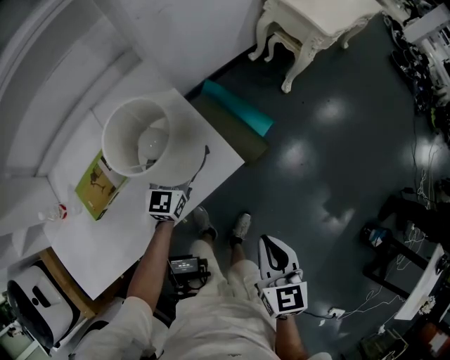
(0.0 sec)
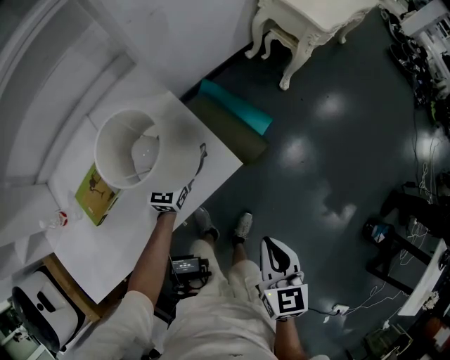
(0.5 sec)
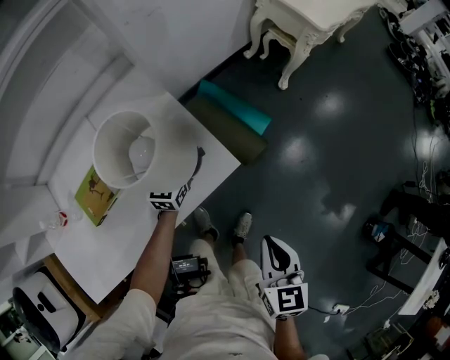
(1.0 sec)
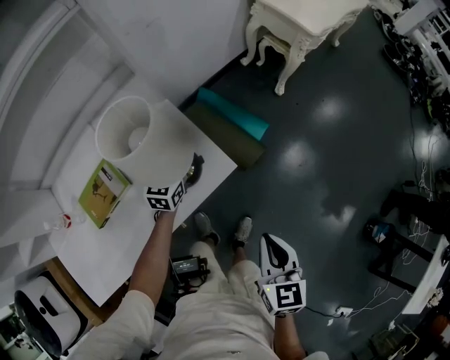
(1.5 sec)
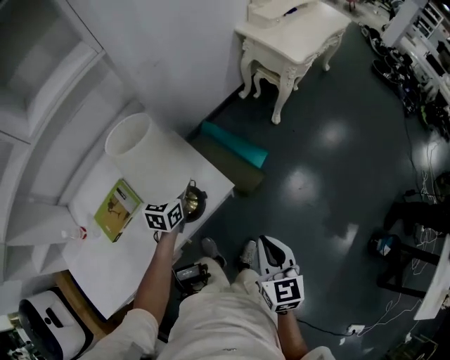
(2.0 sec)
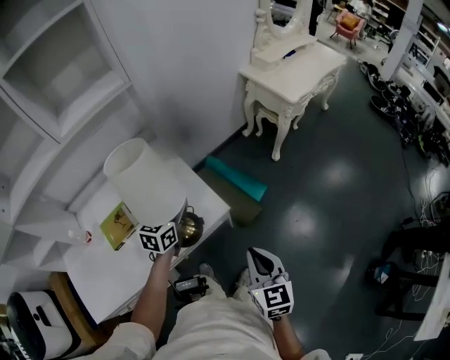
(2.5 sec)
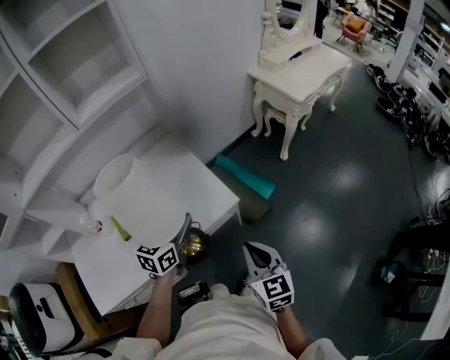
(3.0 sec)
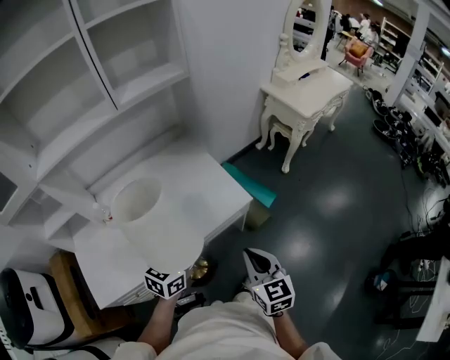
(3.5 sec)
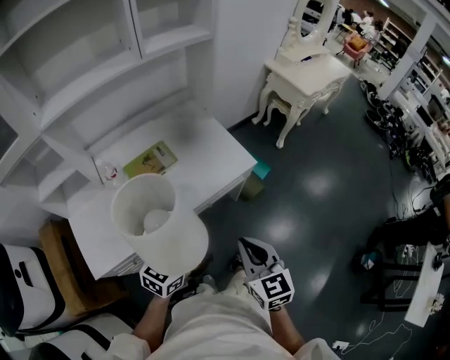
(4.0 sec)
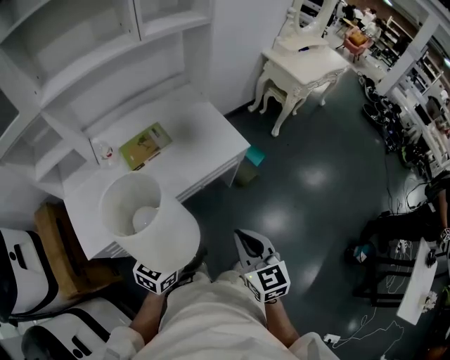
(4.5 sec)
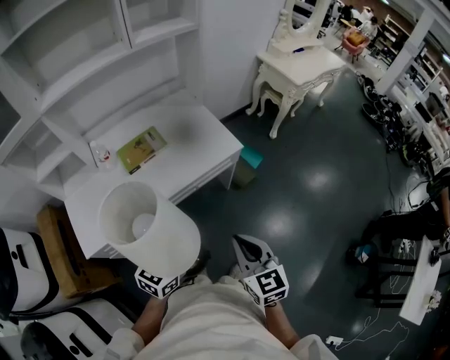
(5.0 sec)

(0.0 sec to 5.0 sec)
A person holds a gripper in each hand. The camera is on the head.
0.0 sec - 2.5 sec: The right gripper travels upward by some 10 cm. The left gripper moves upward, backward and to the right, some 15 cm, and closes up.
2.5 sec - 5.0 sec: The left gripper heads backward, covering roughly 50 cm; the right gripper heads backward and to the left, covering approximately 35 cm.

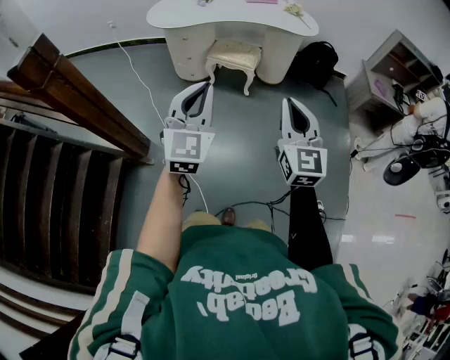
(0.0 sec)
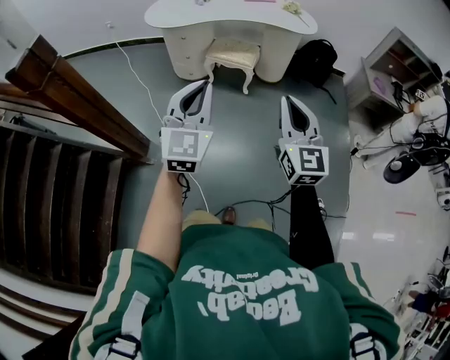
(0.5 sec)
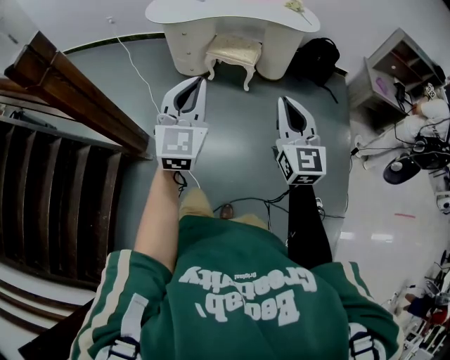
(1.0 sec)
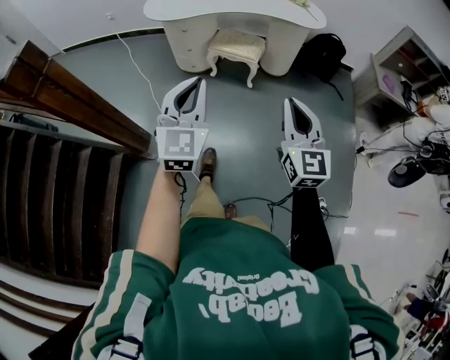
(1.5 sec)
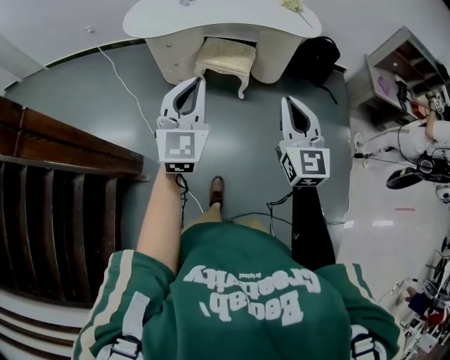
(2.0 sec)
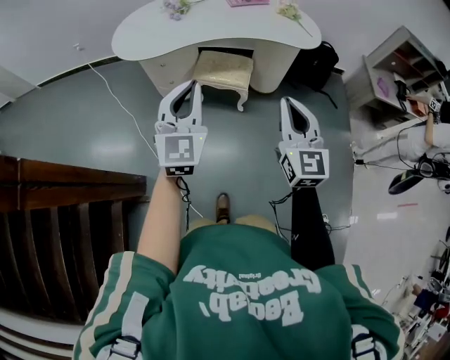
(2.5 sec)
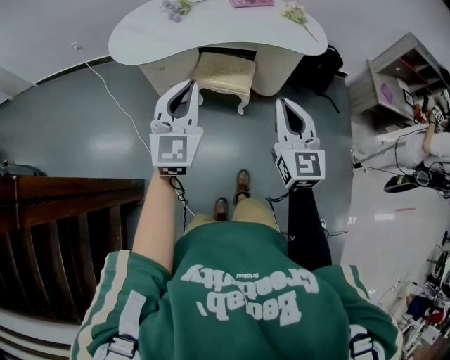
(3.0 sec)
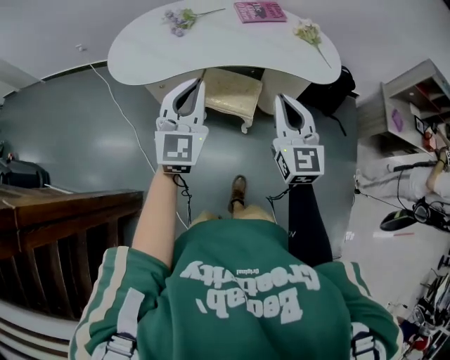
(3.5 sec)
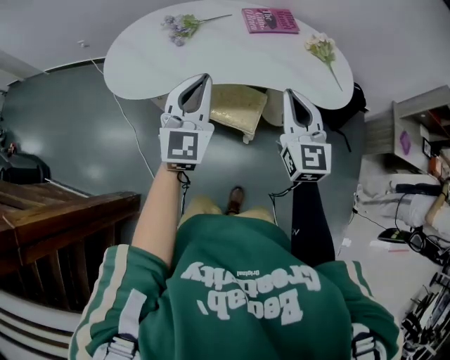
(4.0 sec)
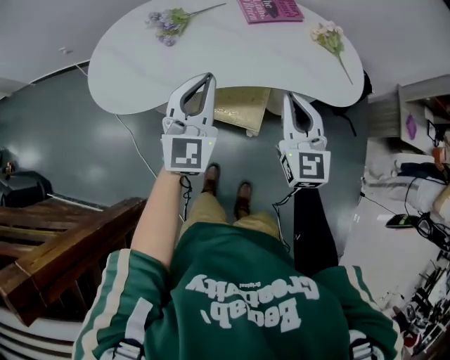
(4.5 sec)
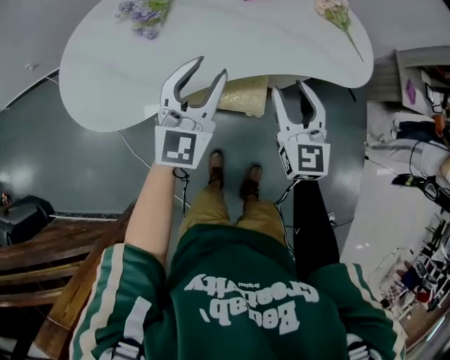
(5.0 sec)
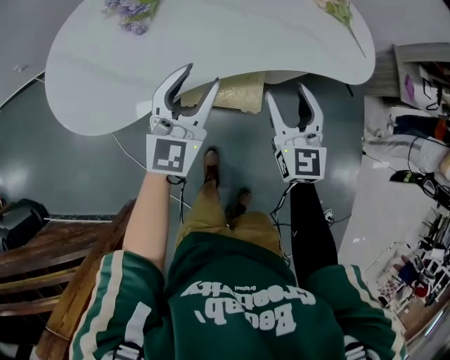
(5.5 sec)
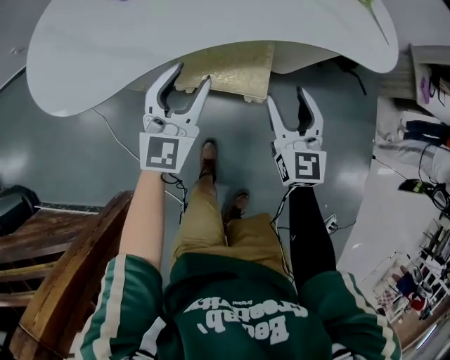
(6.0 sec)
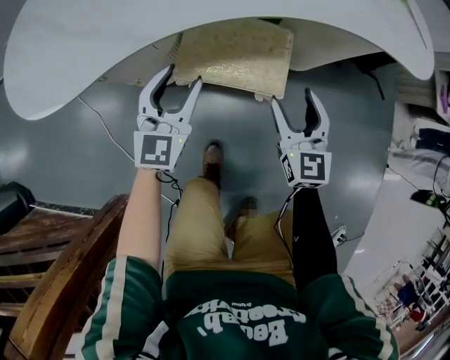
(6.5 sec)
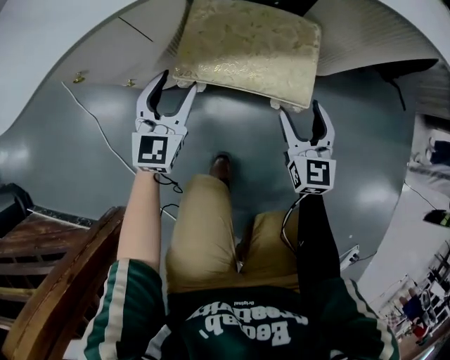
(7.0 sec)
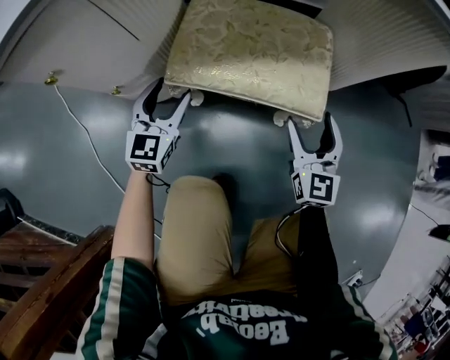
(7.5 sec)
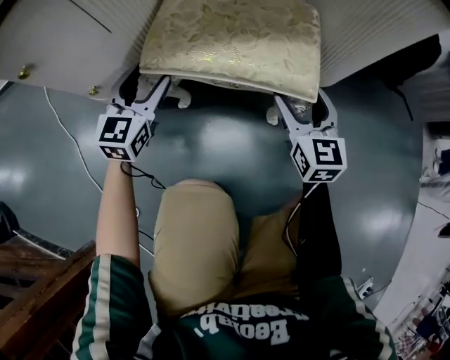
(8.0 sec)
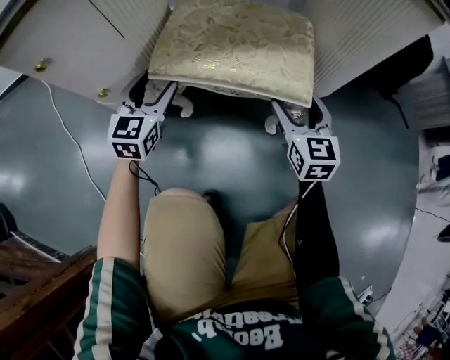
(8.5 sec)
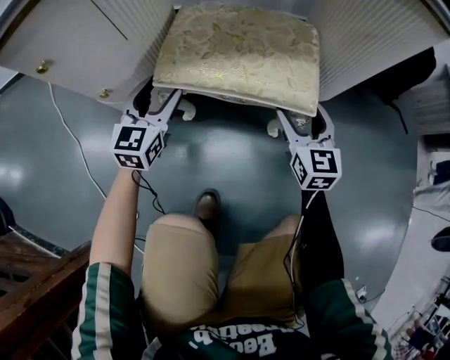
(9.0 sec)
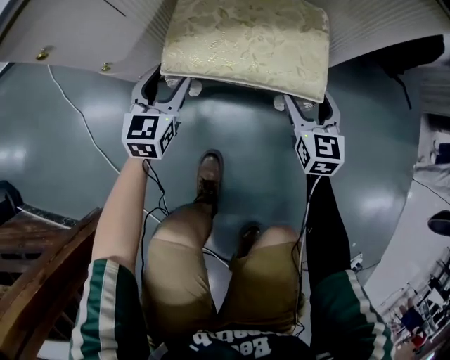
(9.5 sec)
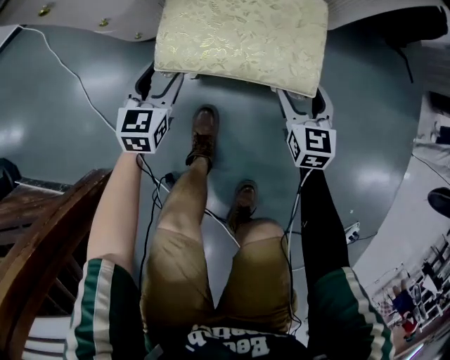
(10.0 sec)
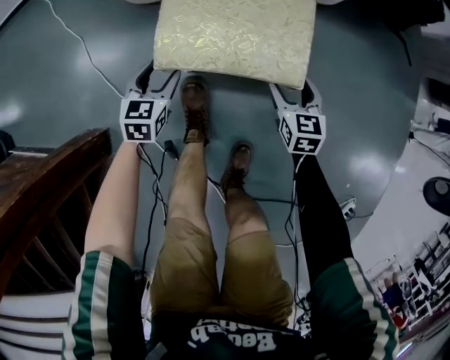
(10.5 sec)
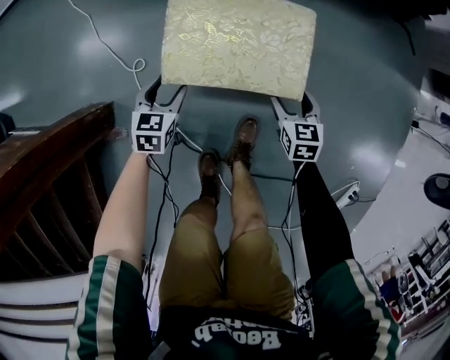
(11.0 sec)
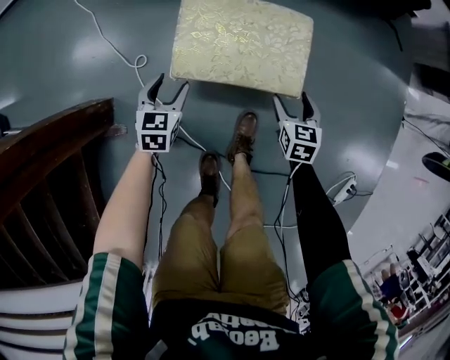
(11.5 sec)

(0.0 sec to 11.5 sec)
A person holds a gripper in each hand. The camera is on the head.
0.0 sec - 2.0 sec: Both grippers move forward, roughly 20 cm.
2.0 sec - 4.0 sec: Both grippers are carried forward, approximately 50 cm.
4.0 sec - 6.0 sec: Both grippers travel together downward, about 30 cm. The right gripper opens, while the left gripper turns by approximately 20 degrees, and opens up.
6.0 sec - 7.5 sec: Both grippers travel together downward, about 40 cm.
7.5 sec - 9.5 sec: The grippers both shift forward by some 15 cm.
9.5 sec - 11.5 sec: The two grippers travel together, backward, approximately 60 cm. The left gripper changes its angle by some 20 degrees, while the right gripper swivels approximately 20 degrees.

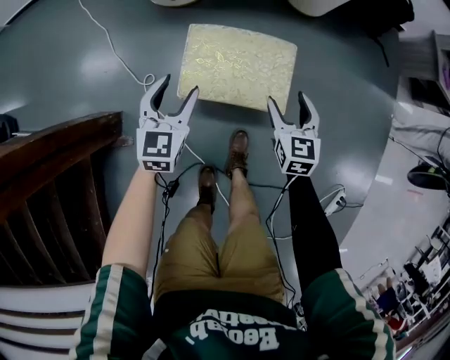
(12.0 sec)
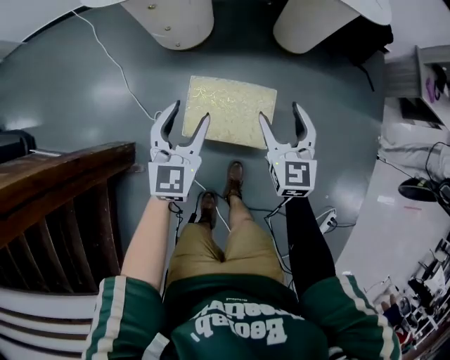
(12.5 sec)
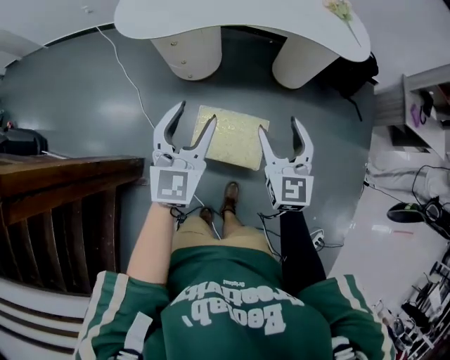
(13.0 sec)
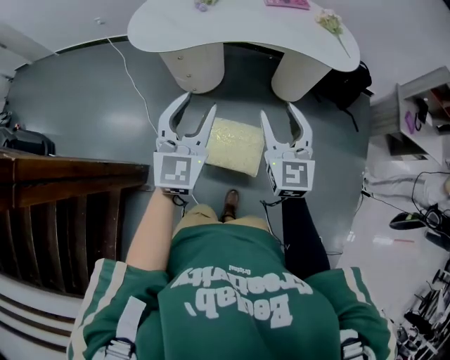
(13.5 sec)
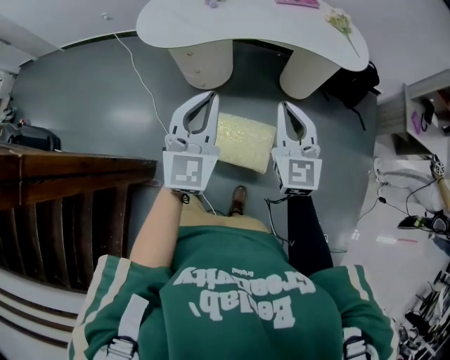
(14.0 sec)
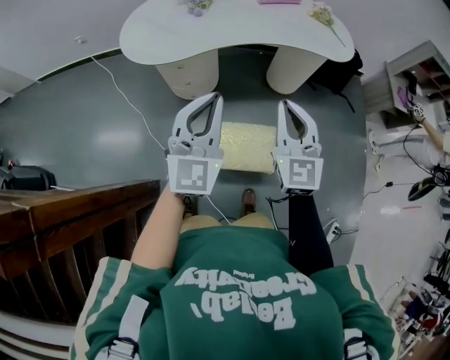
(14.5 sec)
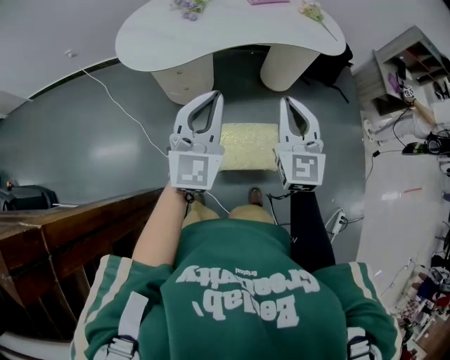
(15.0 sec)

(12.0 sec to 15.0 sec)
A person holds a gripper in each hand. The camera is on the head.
12.0 sec - 13.5 sec: Both grippers move upward, roughly 50 cm. The left gripper rotates some 30 degrees, while the right gripper turns by roughly 30 degrees.
13.5 sec - 15.0 sec: The two grippers go some 10 cm to the left. The left gripper closes. Meanwhile the right gripper closes up.

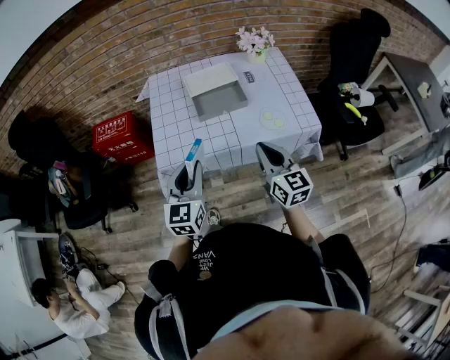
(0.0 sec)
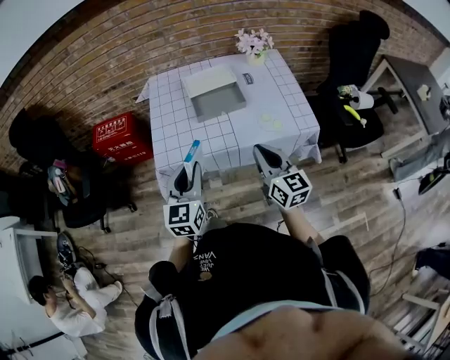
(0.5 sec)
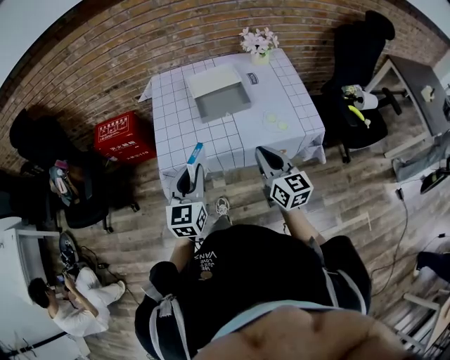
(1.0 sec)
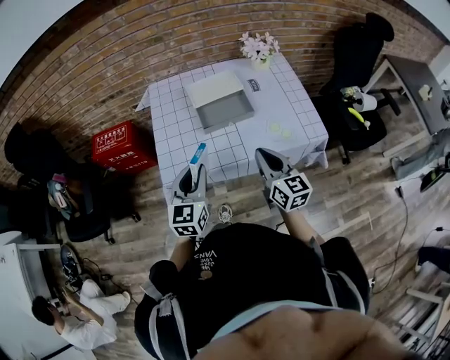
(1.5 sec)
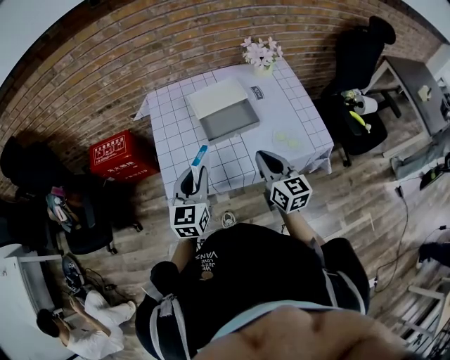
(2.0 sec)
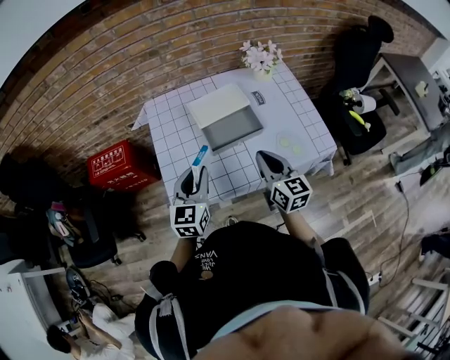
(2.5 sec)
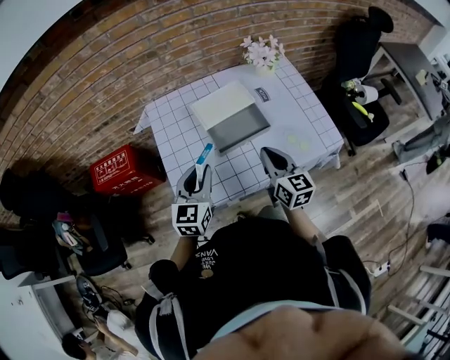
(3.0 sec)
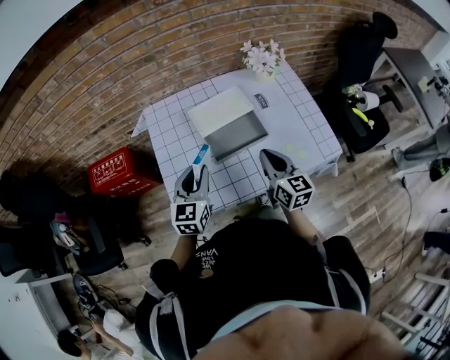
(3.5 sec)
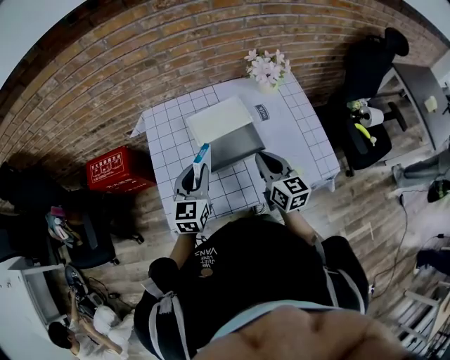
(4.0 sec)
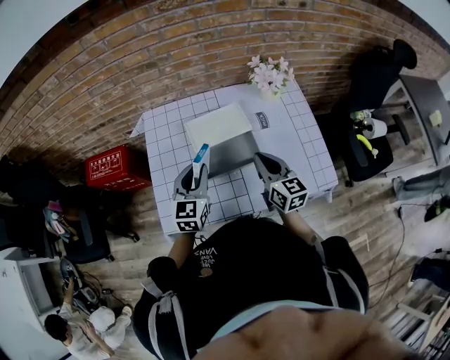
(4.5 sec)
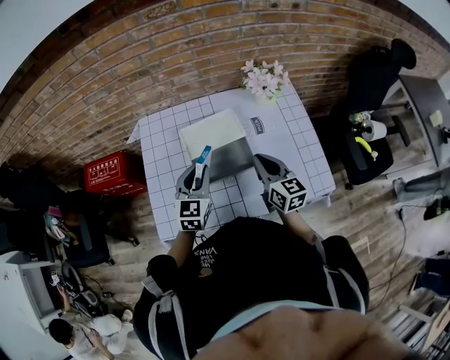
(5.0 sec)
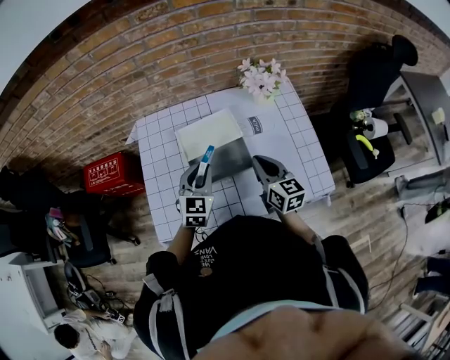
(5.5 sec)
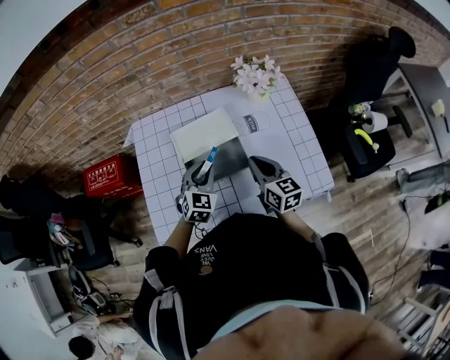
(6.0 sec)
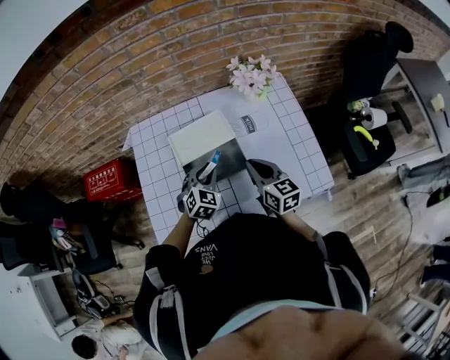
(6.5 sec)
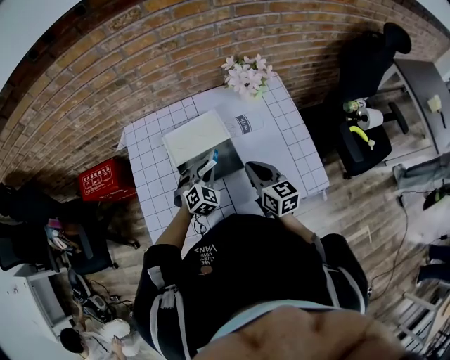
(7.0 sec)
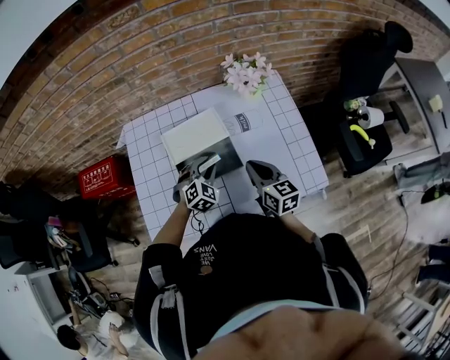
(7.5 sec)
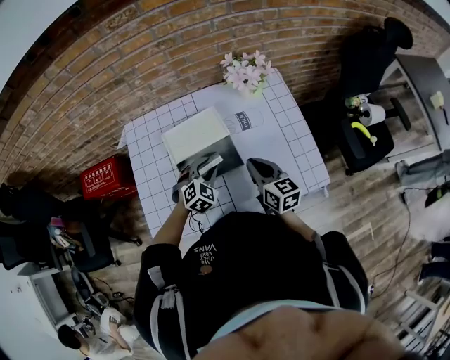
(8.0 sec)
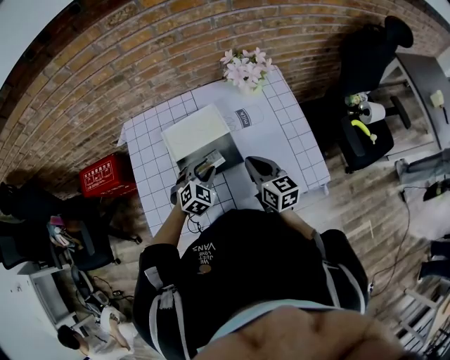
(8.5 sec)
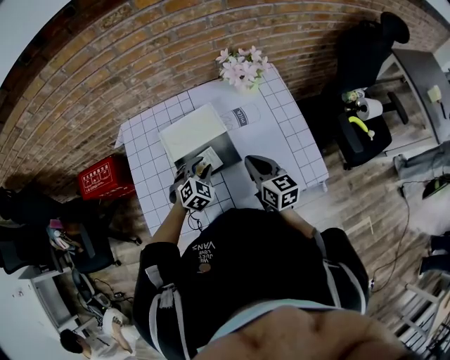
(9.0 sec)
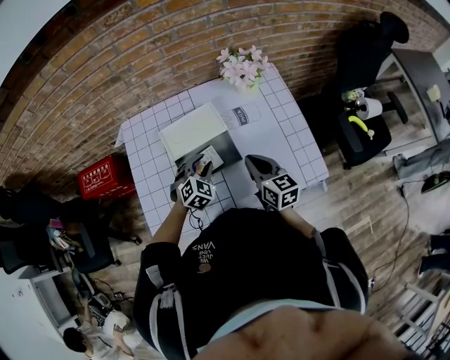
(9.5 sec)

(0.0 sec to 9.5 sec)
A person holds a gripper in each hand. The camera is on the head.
0.0 sec - 2.0 sec: Both grippers move forward, some 10 cm.
2.0 sec - 4.0 sec: The grippers both shift forward by some 15 cm.
4.0 sec - 5.5 sec: The two grippers go roughly 10 cm to the right and forward.
5.5 sec - 7.5 sec: The left gripper heads downward and to the right, covering some 15 cm, and swivels roughly 40 degrees.
7.5 sec - 9.5 sec: The grippers stay close to where they were, moving slightly.
